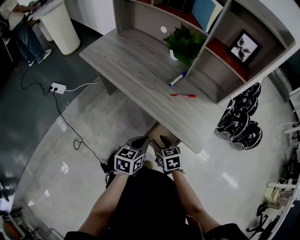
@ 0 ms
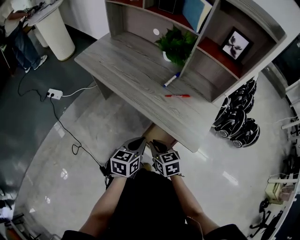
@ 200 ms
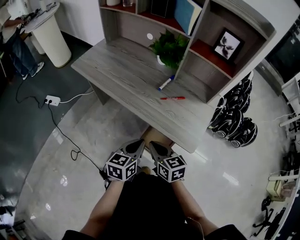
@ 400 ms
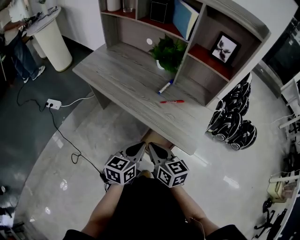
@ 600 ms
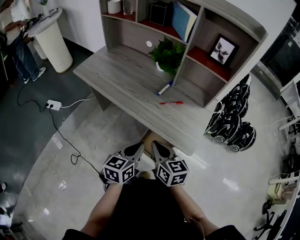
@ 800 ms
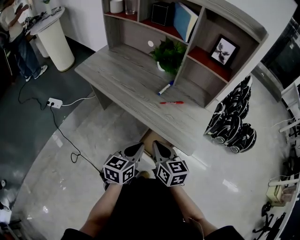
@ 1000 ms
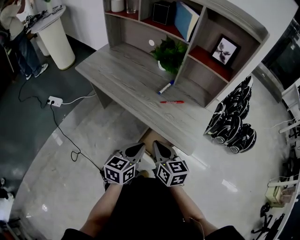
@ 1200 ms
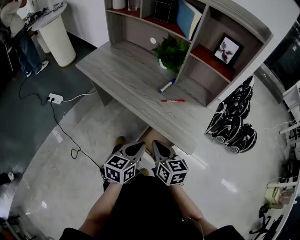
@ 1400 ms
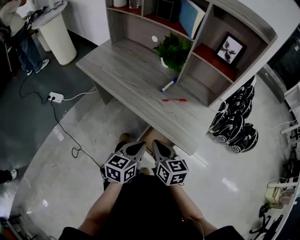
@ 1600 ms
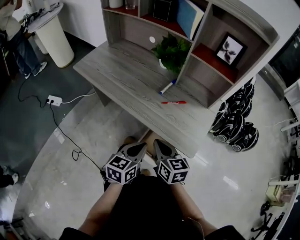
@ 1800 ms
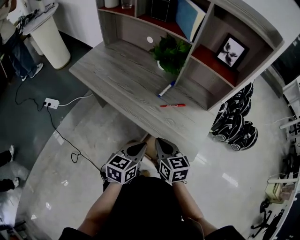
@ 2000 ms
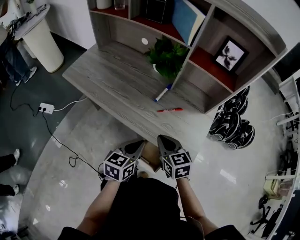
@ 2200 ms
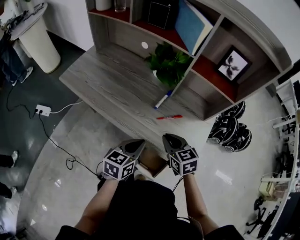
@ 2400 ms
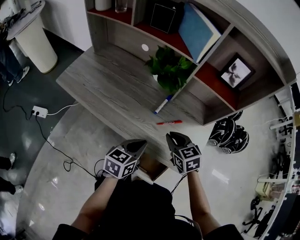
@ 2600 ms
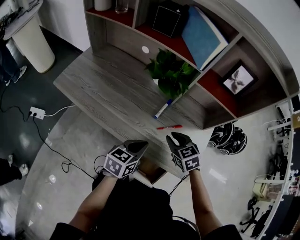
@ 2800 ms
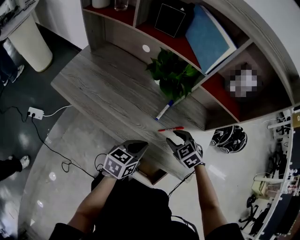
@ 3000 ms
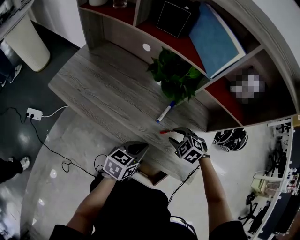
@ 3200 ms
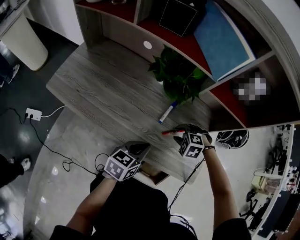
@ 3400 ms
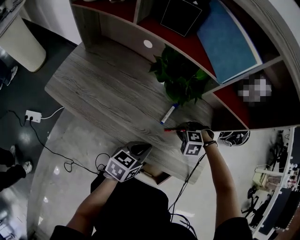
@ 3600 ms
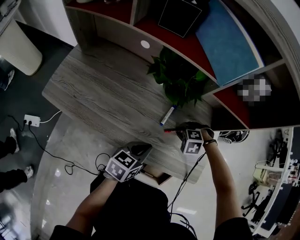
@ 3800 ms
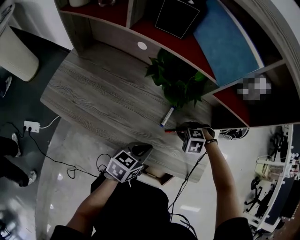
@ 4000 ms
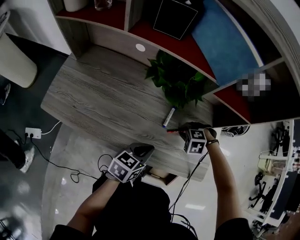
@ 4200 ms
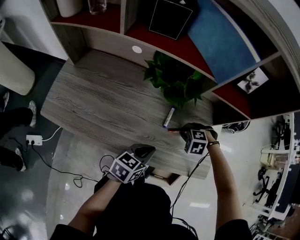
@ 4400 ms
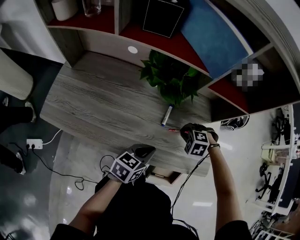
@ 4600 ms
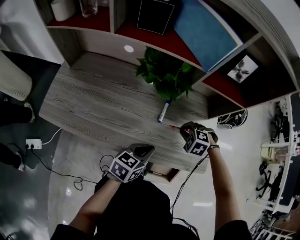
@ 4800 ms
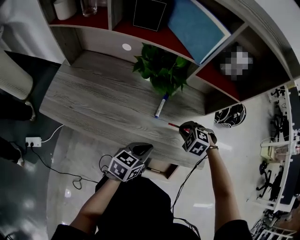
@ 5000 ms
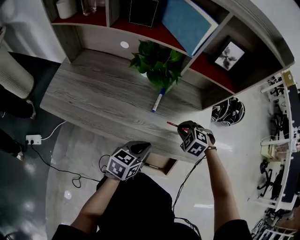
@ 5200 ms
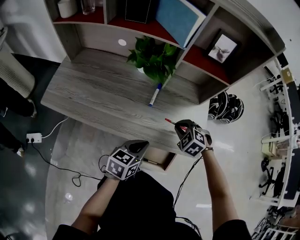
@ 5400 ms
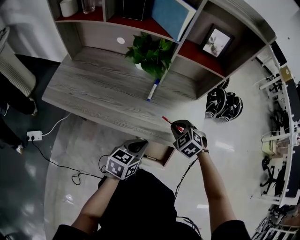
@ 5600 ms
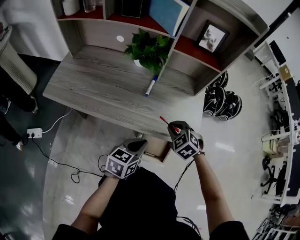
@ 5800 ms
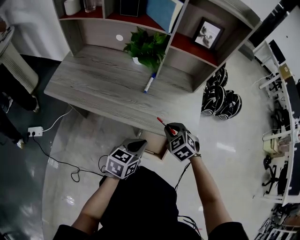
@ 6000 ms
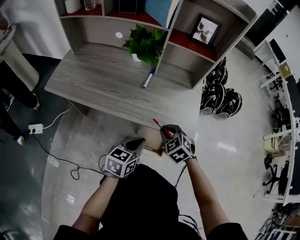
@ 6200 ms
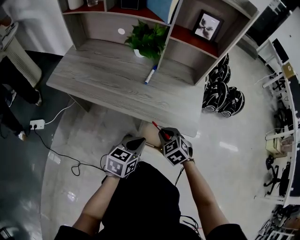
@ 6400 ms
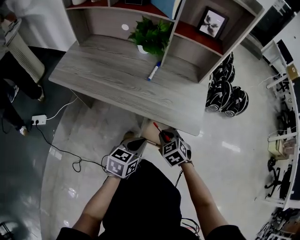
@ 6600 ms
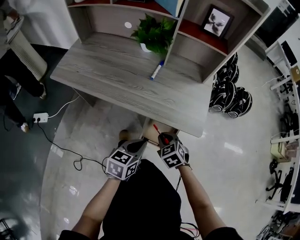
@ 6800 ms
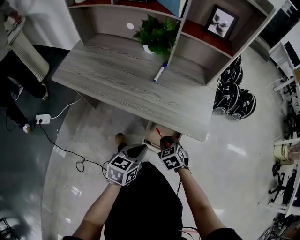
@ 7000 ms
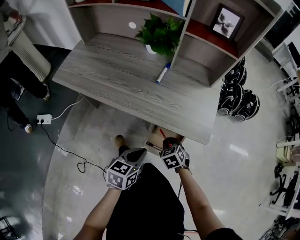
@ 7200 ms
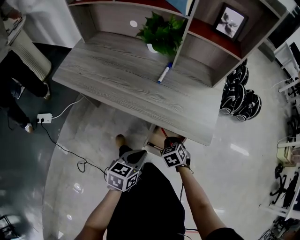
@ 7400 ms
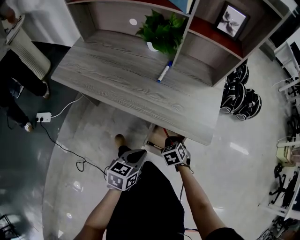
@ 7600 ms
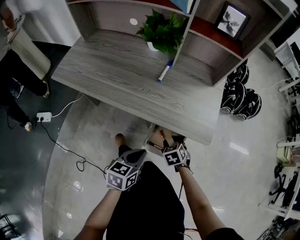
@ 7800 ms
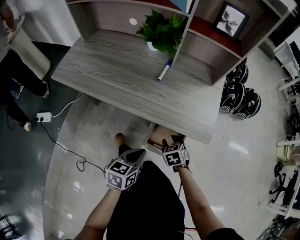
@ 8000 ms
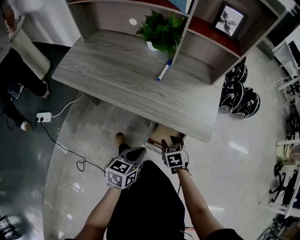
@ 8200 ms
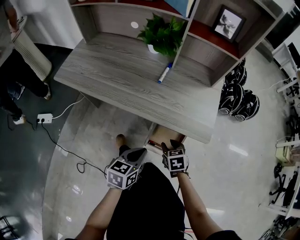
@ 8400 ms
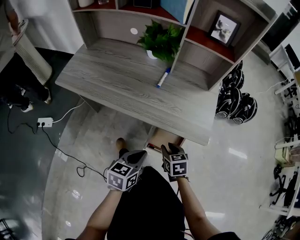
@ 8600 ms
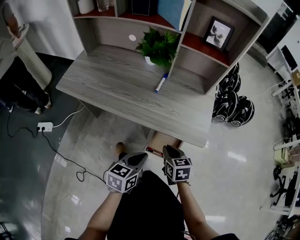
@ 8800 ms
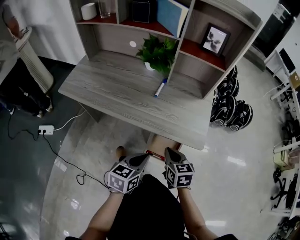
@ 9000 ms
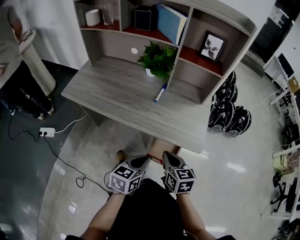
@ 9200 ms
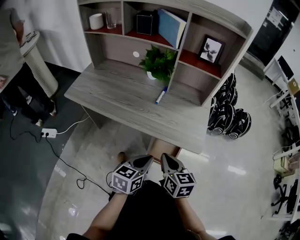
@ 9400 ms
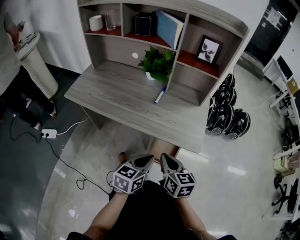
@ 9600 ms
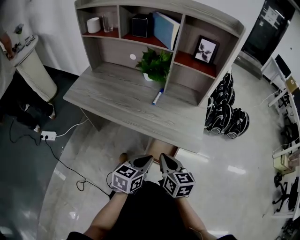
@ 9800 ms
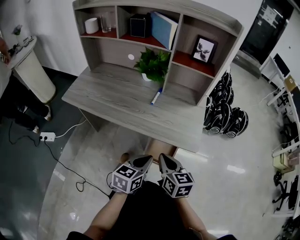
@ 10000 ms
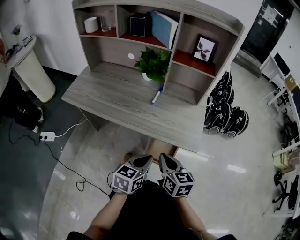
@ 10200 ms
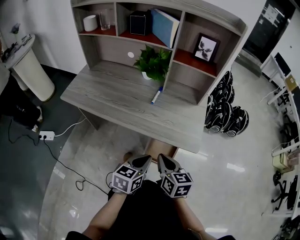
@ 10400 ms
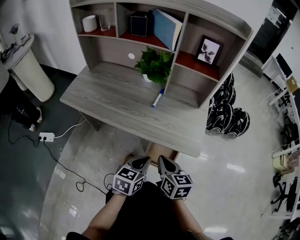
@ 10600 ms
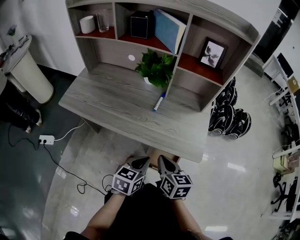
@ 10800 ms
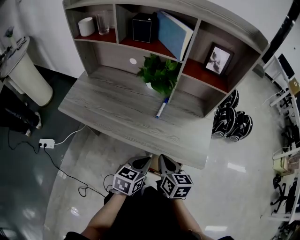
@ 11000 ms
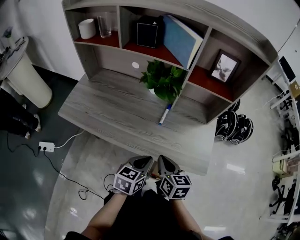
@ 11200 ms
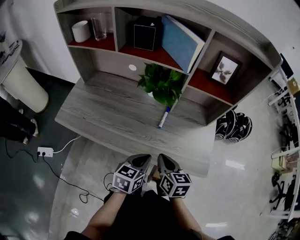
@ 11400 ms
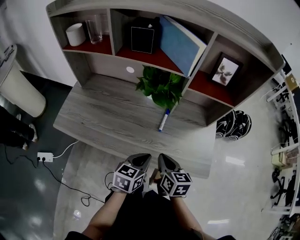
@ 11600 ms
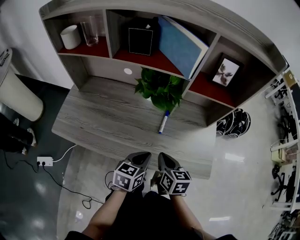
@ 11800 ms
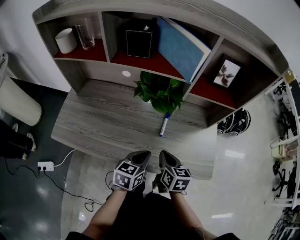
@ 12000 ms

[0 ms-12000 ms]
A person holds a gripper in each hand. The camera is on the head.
0 ms to 1600 ms: The right gripper travels upward by some 10 cm, swivels some 20 degrees, and closes its fingers. Meanwhile the left gripper travels upward by approximately 5 cm.
1600 ms to 3000 ms: Both grippers travel together forward, approximately 20 cm. The left gripper swivels roughly 20 degrees, while the right gripper tips its fingers downward by roughly 30 degrees, and opens its fingers.
3000 ms to 4400 ms: The left gripper changes place by roughly 5 cm; the right gripper goes roughly 5 cm downward, changes its angle by some 40 degrees, and closes up.
4400 ms to 6000 ms: The right gripper changes place by approximately 20 cm, and angles its fingers upward, by roughly 30 degrees, while the left gripper changes place by roughly 20 cm.
6000 ms to 7600 ms: The right gripper goes approximately 20 cm downward, and turns by some 20 degrees. The left gripper travels downward and backward by roughly 10 cm.
7600 ms to 9000 ms: The left gripper moves upward, roughly 5 cm, while the right gripper shifts roughly 15 cm upward, turns by approximately 40 degrees, and opens, then closes again.
9000 ms to 10400 ms: The right gripper travels upward by roughly 5 cm.
10400 ms to 12000 ms: Both grippers travel together forward and to the left, roughly 25 cm.

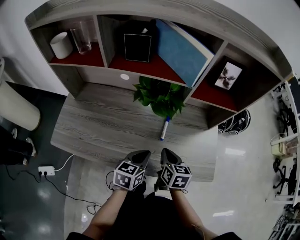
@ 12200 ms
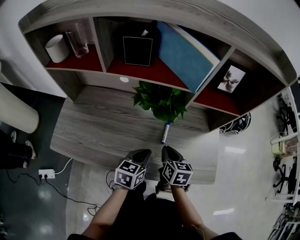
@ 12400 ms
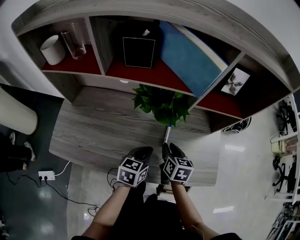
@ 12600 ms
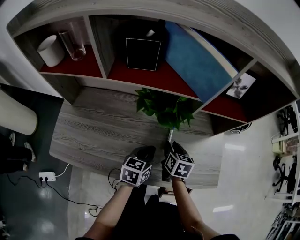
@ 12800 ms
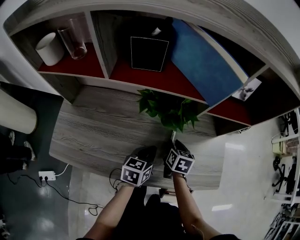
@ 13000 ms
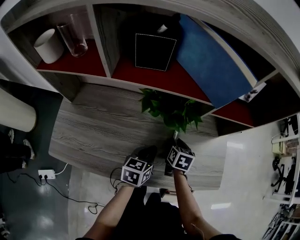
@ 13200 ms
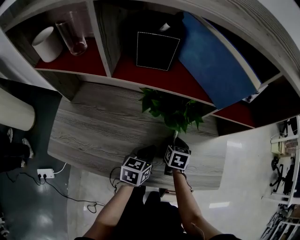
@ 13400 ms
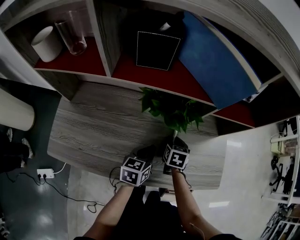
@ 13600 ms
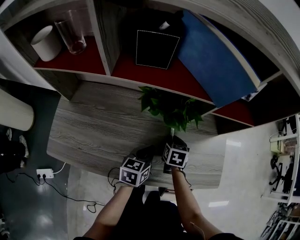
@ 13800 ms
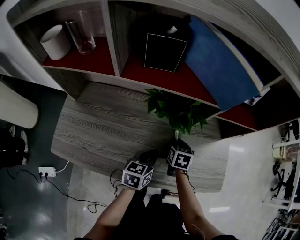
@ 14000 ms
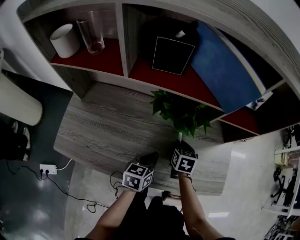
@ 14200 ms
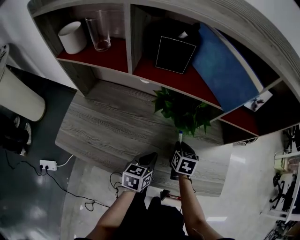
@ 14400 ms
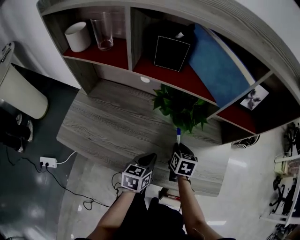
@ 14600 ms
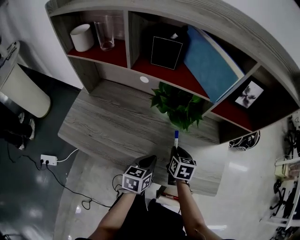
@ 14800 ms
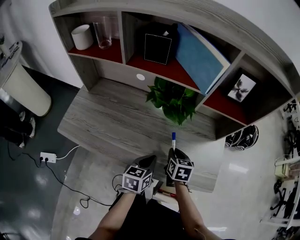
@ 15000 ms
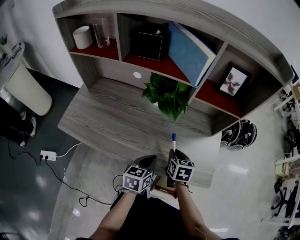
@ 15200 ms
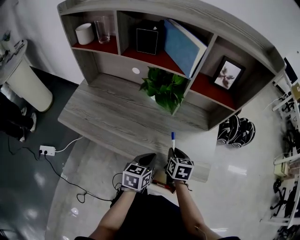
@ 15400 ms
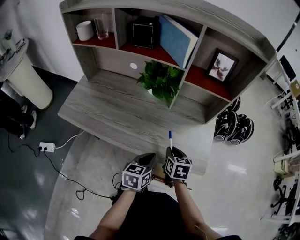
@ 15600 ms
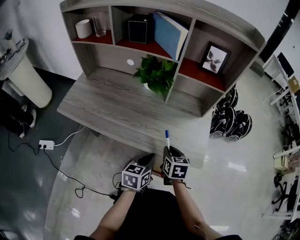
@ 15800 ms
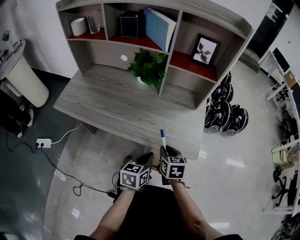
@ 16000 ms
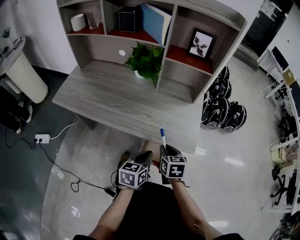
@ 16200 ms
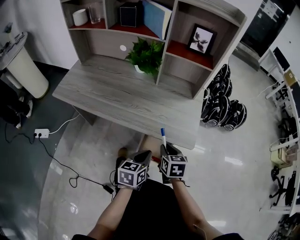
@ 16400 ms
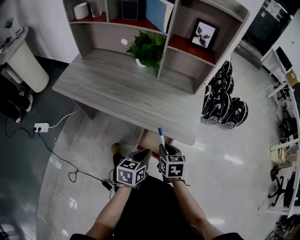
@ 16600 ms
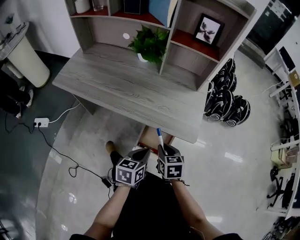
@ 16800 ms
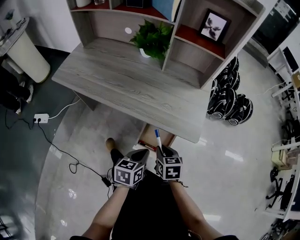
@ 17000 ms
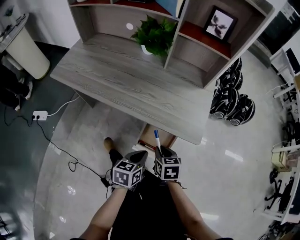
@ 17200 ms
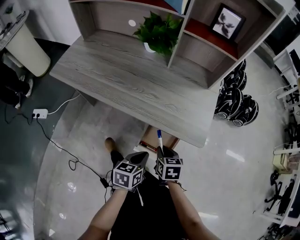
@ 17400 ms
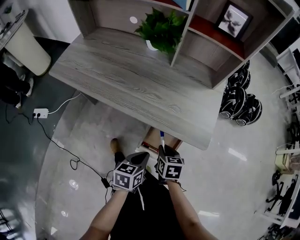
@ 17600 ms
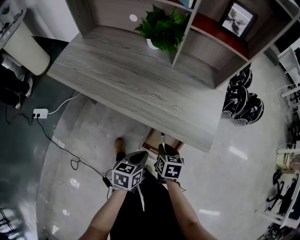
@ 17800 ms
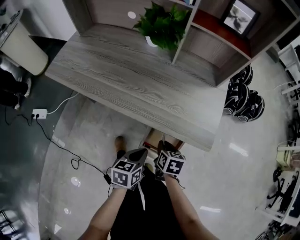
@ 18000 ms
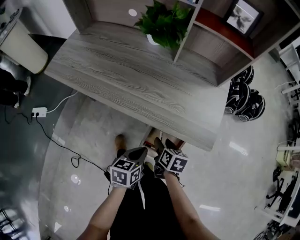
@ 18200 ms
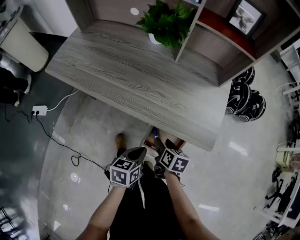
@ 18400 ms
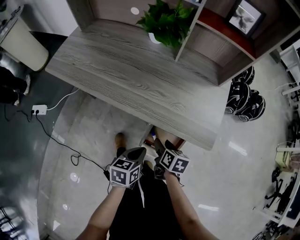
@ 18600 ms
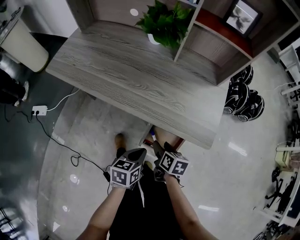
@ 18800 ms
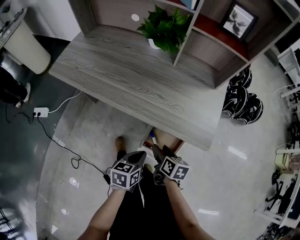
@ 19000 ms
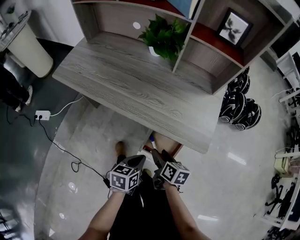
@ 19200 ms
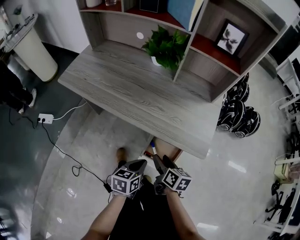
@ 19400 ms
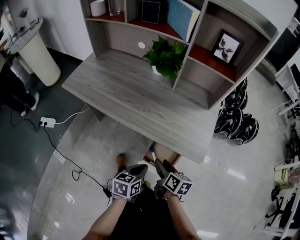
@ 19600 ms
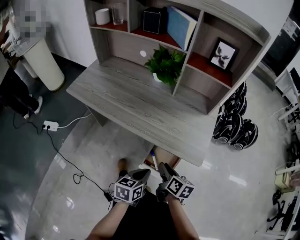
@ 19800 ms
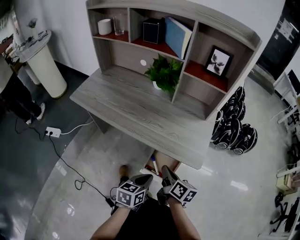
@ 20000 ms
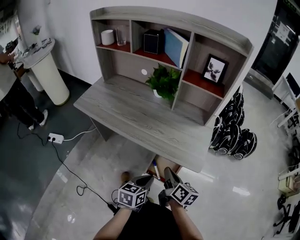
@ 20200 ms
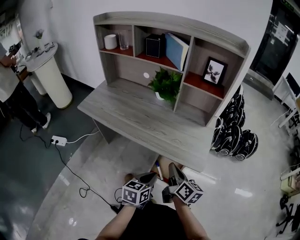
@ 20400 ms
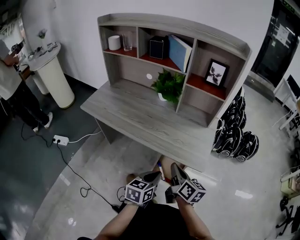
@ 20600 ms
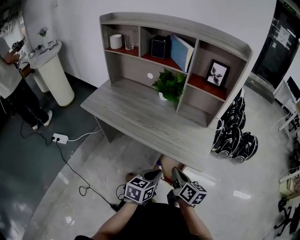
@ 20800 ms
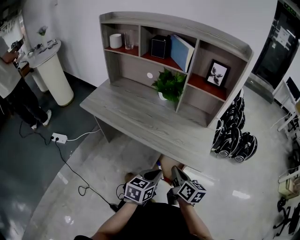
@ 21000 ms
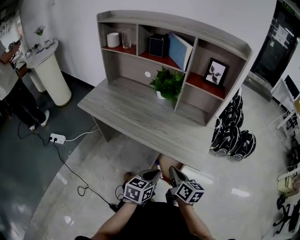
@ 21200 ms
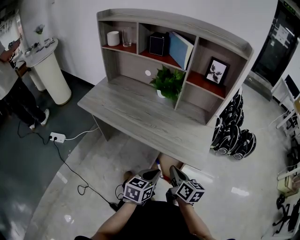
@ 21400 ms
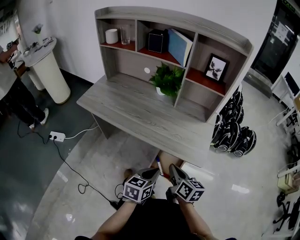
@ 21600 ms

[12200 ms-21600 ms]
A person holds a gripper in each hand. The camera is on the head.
12200 ms to 13800 ms: The right gripper goes some 15 cm forward and downward, and changes its angle by some 20 degrees, while the left gripper is displaced forward by some 5 cm.
13800 ms to 15400 ms: The right gripper shifts approximately 15 cm backward, to the right and upward. Meanwhile the left gripper moves backward and to the right, about 15 cm.
15400 ms to 17000 ms: The right gripper travels backward by approximately 20 cm, while the left gripper shifts some 20 cm backward and to the right.
17000 ms to 18400 ms: The right gripper goes roughly 10 cm downward and forward, turns by approximately 30 degrees, and opens its fingers. Meanwhile the left gripper moves downward, roughly 5 cm.
18400 ms to 20000 ms: The left gripper moves upward, roughly 10 cm. Meanwhile the right gripper goes some 15 cm upward, changes its angle by roughly 30 degrees, and closes its fingers.
20000 ms to 21600 ms: The left gripper changes place by roughly 5 cm. Meanwhile the right gripper shifts approximately 5 cm upward.

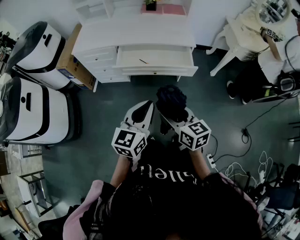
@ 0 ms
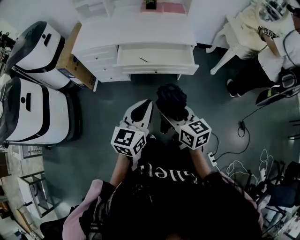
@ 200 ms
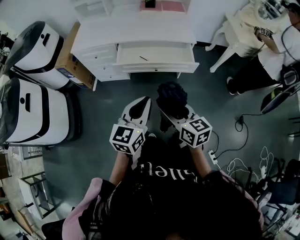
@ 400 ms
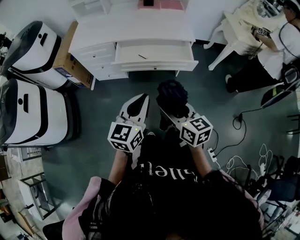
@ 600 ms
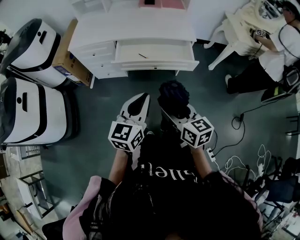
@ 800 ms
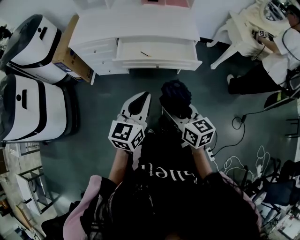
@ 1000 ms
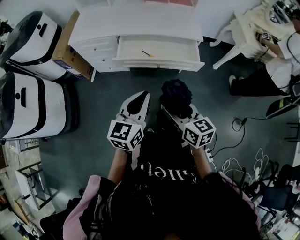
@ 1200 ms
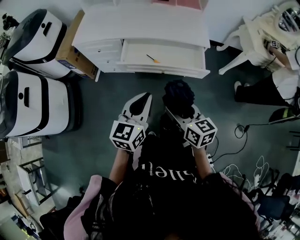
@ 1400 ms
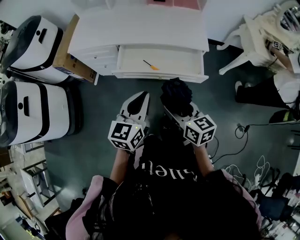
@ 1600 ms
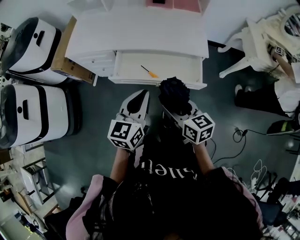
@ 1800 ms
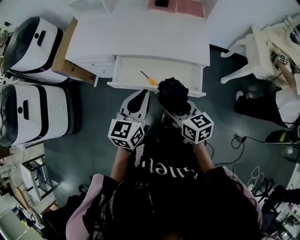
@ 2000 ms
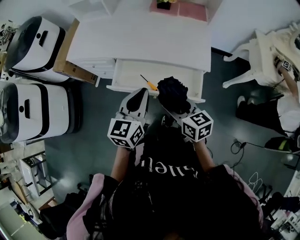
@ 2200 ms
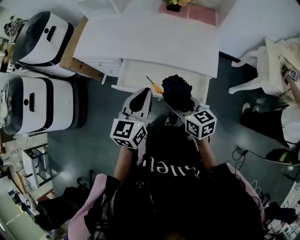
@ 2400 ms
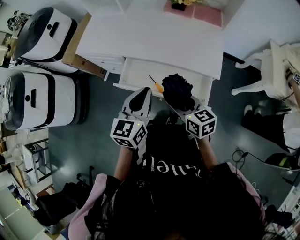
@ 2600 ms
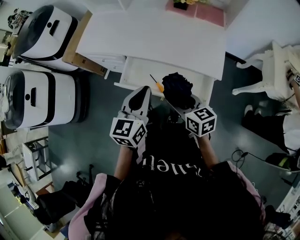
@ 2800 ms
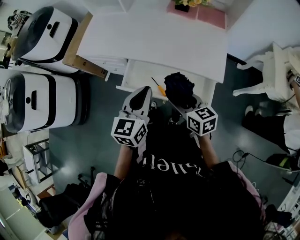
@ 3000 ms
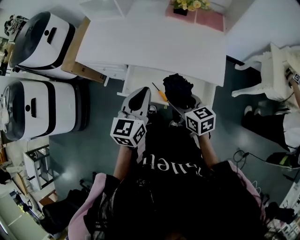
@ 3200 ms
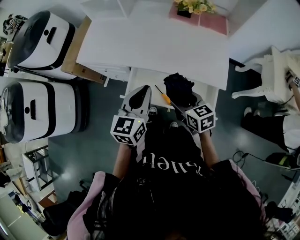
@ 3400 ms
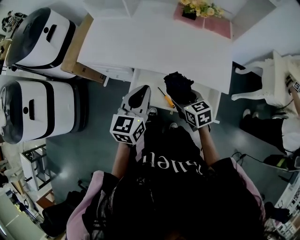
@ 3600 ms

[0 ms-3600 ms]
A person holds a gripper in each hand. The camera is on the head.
0 ms to 1800 ms: Both grippers travel together forward, approximately 25 cm.
1800 ms to 3600 ms: The grippers both shift forward by roughly 25 cm. The right gripper rotates roughly 20 degrees.
